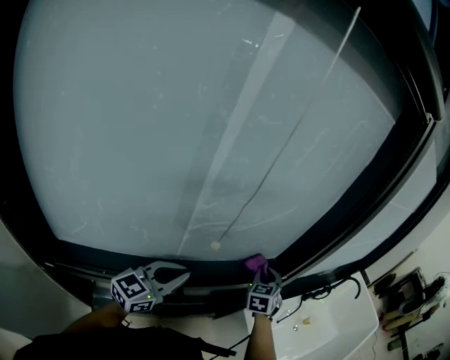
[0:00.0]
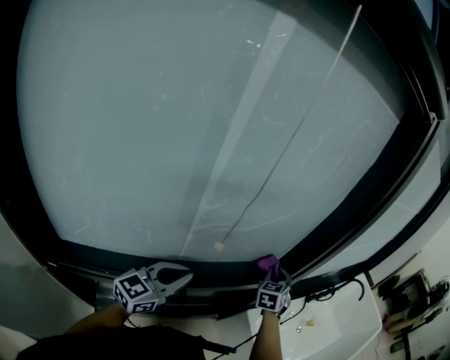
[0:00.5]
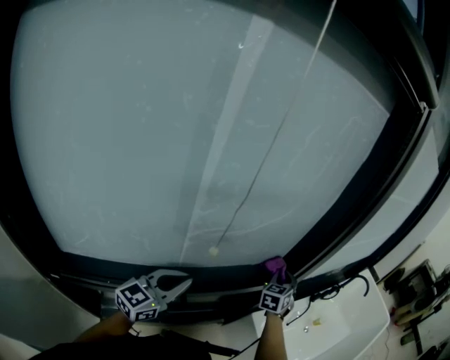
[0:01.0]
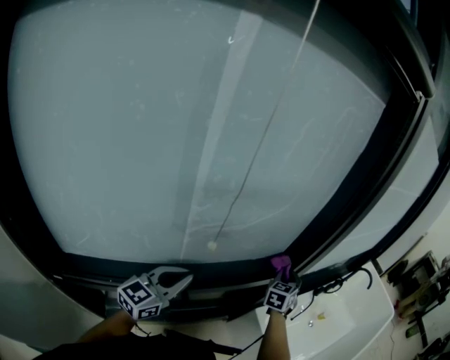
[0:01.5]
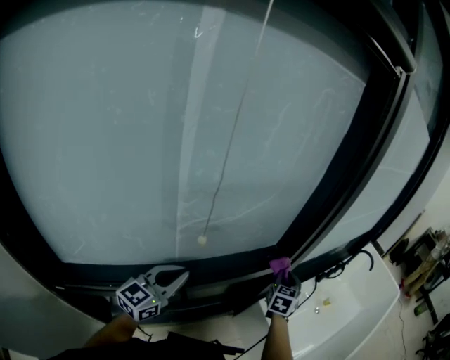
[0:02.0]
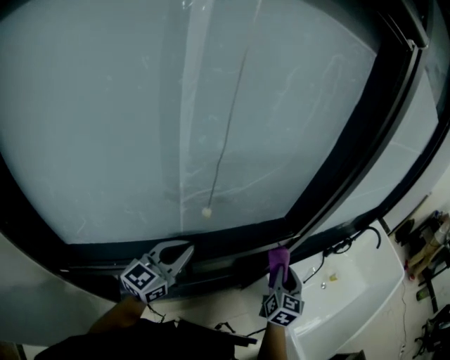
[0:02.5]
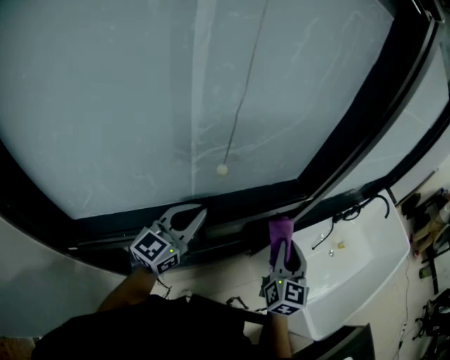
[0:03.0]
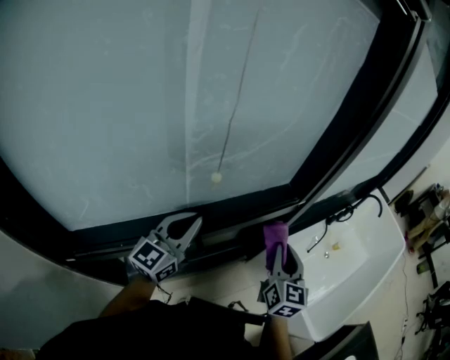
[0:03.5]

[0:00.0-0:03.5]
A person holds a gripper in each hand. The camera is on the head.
0:00.0 to 0:02.0: The right gripper moves to the right, about 10 cm, and changes its angle by some 20 degrees.
0:02.0 to 0:03.5: The right gripper moves backward, some 20 cm, and changes its angle by some 20 degrees.

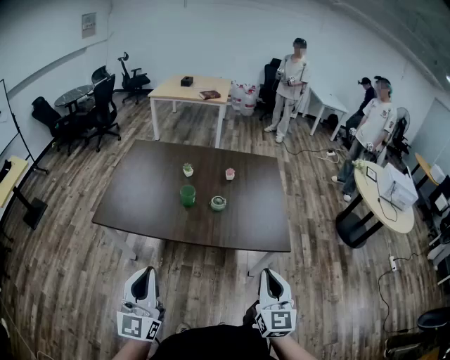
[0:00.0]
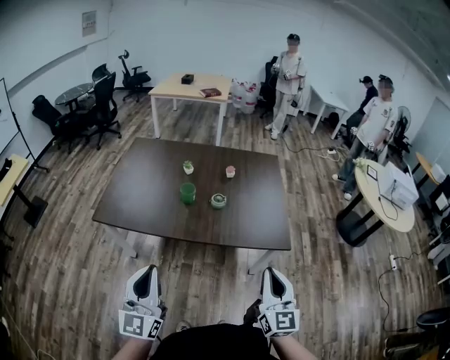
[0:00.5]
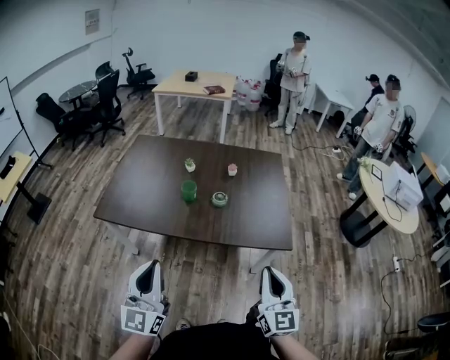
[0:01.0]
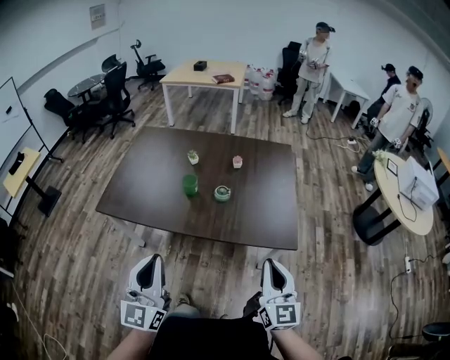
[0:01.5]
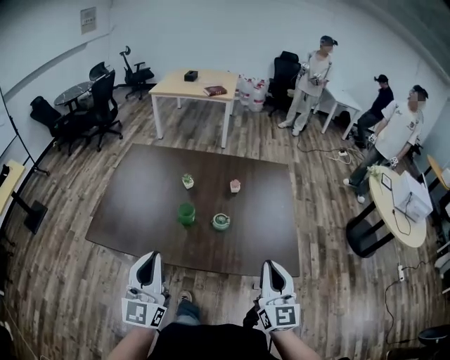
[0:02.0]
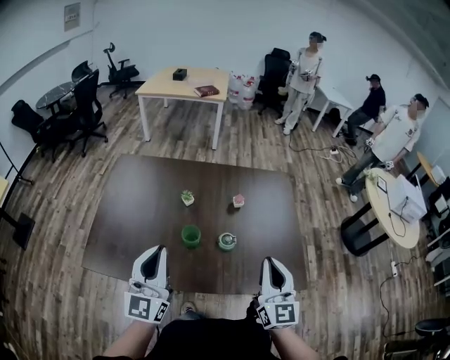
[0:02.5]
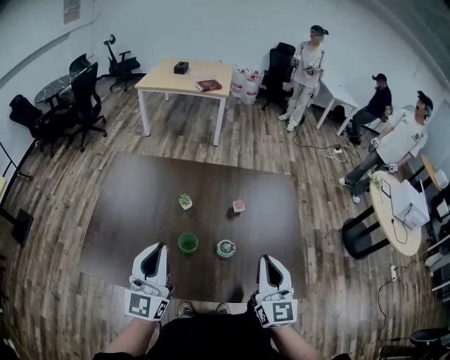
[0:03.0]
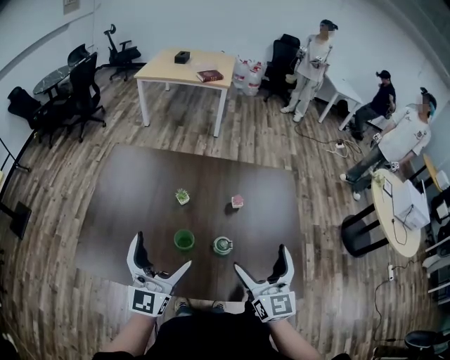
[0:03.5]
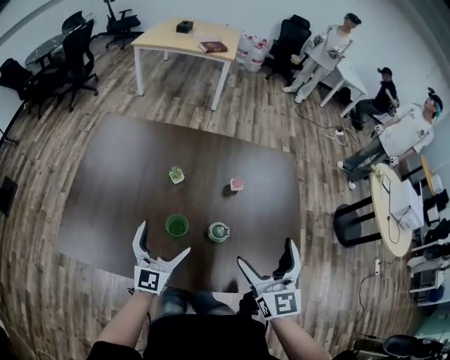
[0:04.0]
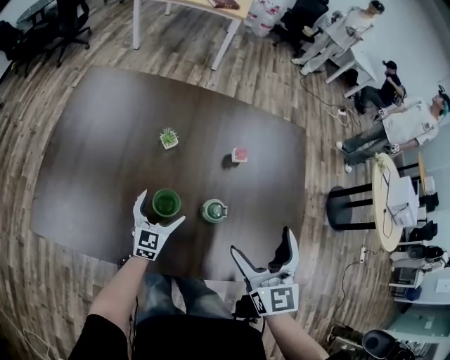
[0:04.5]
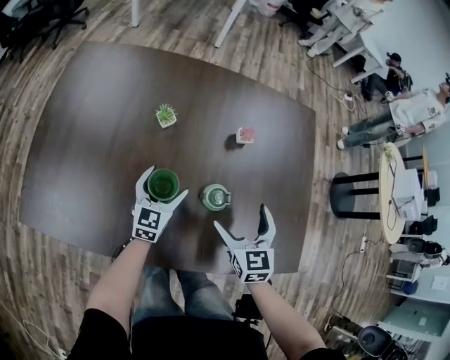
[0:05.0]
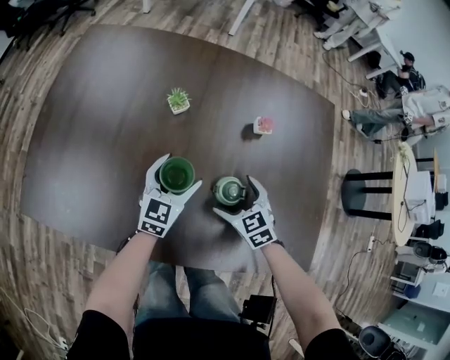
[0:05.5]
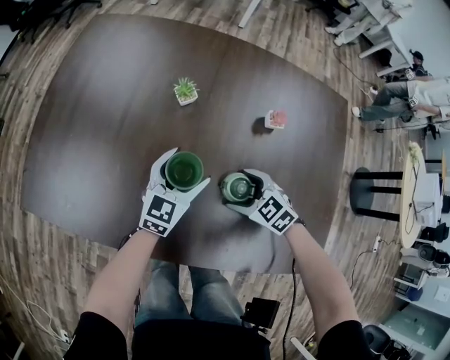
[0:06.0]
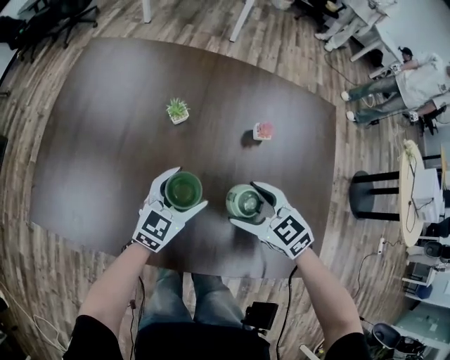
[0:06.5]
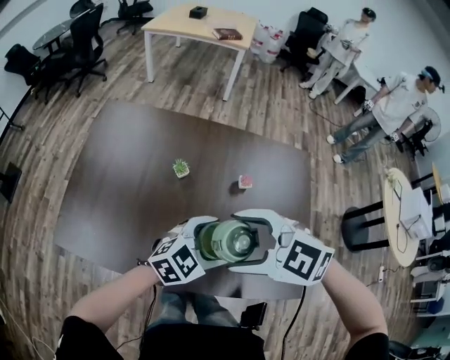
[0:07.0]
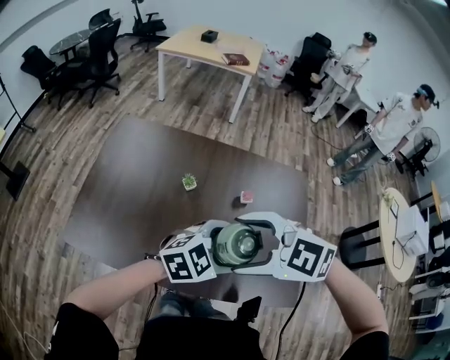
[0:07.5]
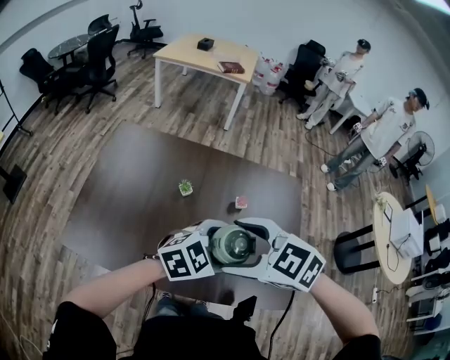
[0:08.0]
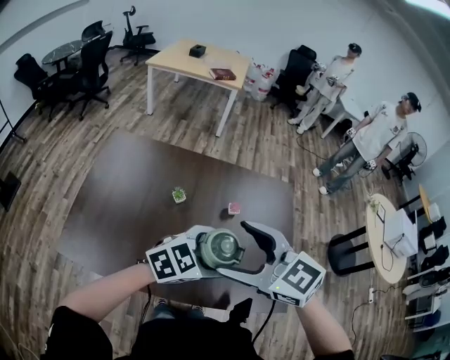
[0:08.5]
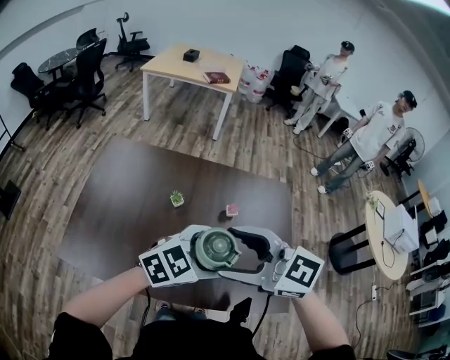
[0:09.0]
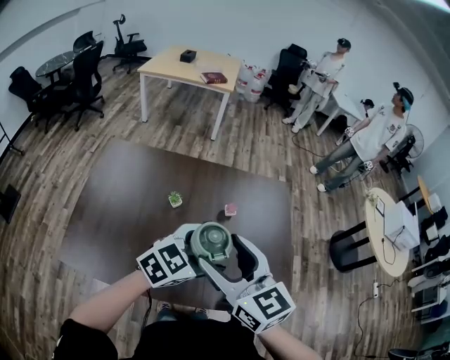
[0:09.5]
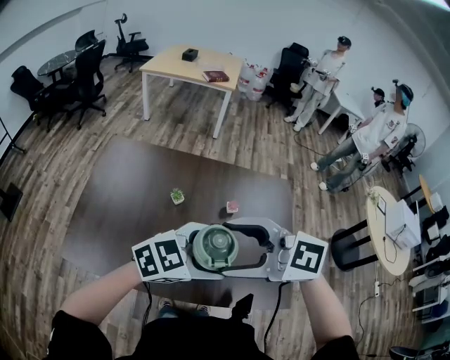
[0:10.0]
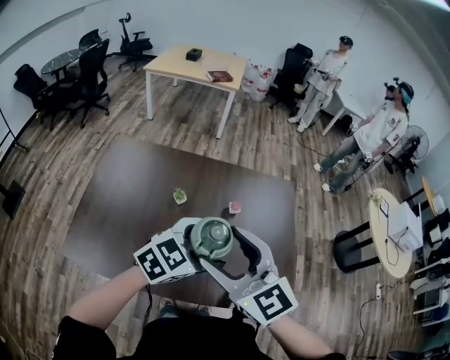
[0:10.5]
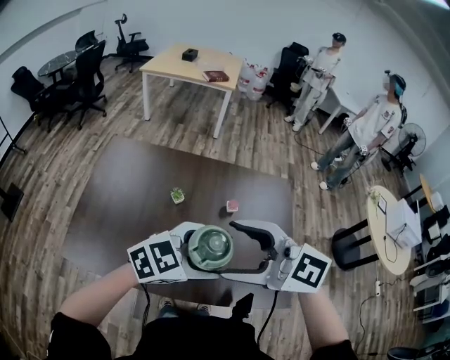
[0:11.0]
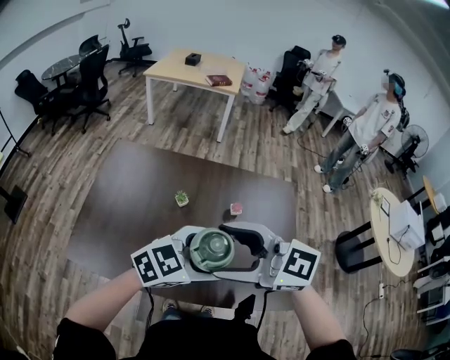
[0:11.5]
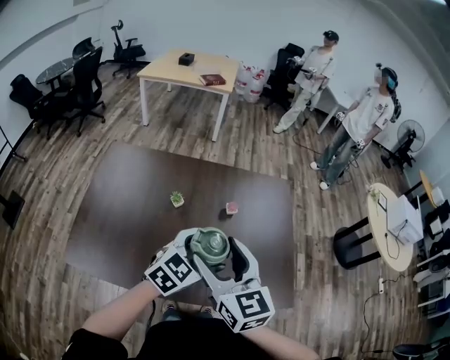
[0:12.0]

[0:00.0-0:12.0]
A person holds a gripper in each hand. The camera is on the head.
0:00.0 to 0:02.0: The two grippers go roughly 20 cm forward.
0:02.0 to 0:04.0: The left gripper goes some 35 cm forward and downward, changes its angle by roughly 20 degrees, and opens up; the right gripper heads forward, covering approximately 25 cm, and opens its fingers.
0:04.0 to 0:06.0: The left gripper is displaced downward by about 20 cm, while the right gripper moves downward, approximately 40 cm, and points its fingers about 50 degrees further downward.
0:06.0 to 0:08.0: The two grippers go approximately 40 cm upward. The left gripper turns by about 40 degrees.
0:08.0 to 0:10.0: Both grippers move upward, some 5 cm. The right gripper turns by approximately 30 degrees.
0:10.0 to 0:12.0: The left gripper moves downward, about 5 cm, and changes its angle by about 20 degrees, while the right gripper changes its angle by about 60 degrees.

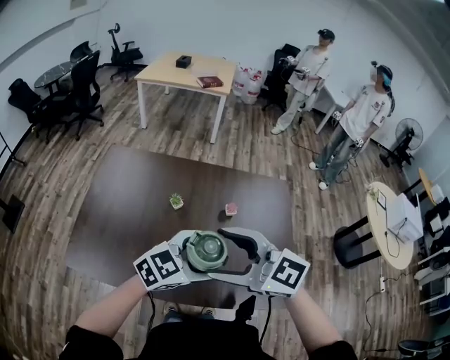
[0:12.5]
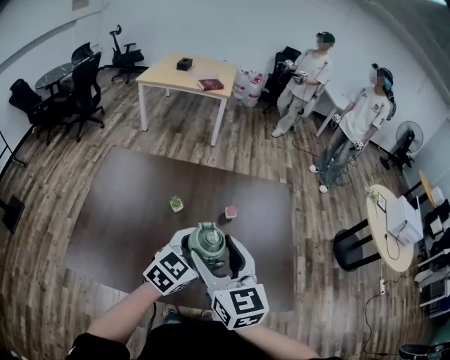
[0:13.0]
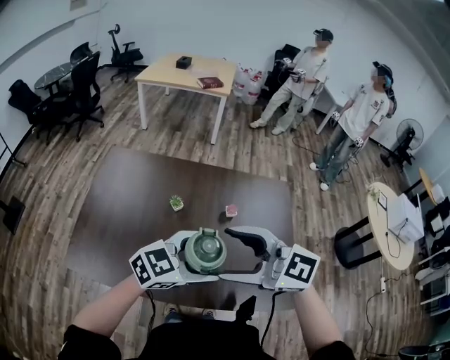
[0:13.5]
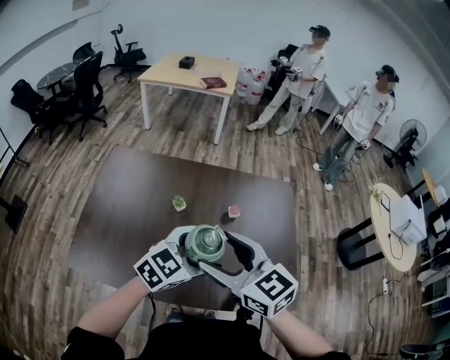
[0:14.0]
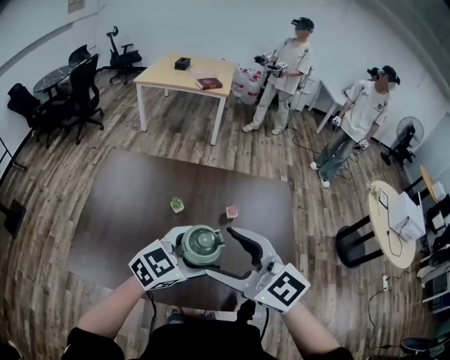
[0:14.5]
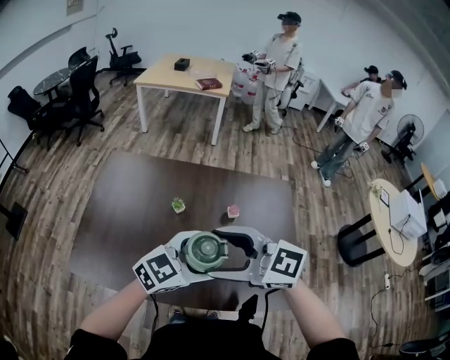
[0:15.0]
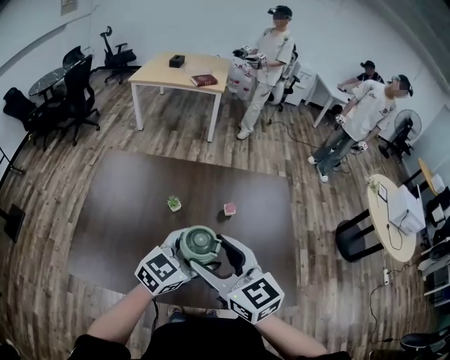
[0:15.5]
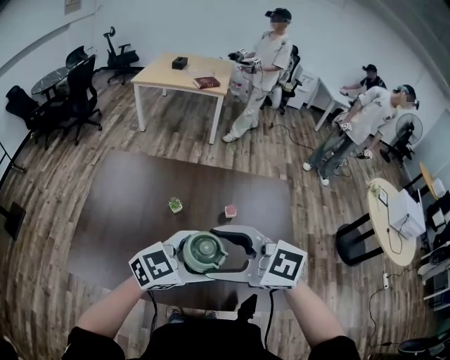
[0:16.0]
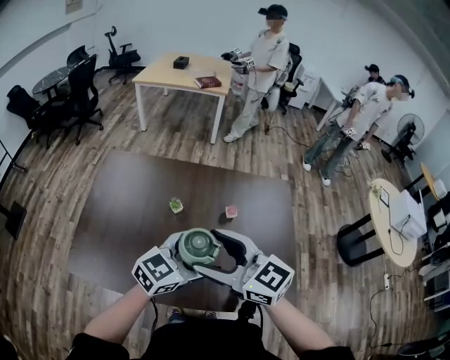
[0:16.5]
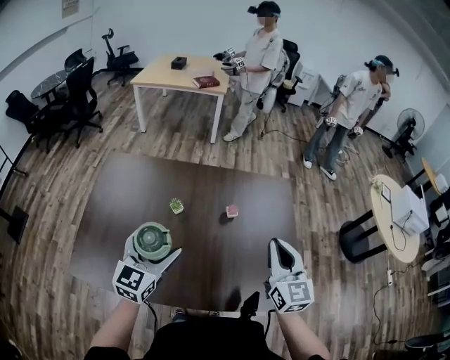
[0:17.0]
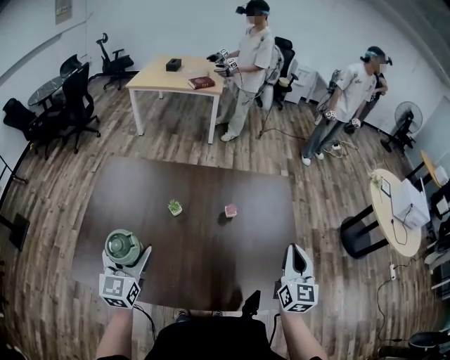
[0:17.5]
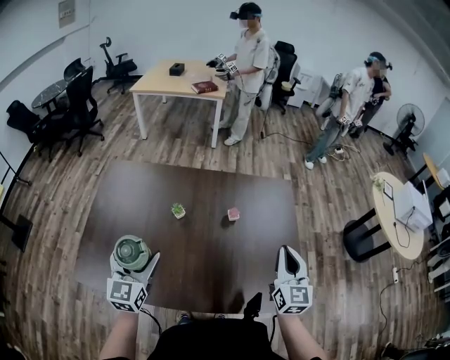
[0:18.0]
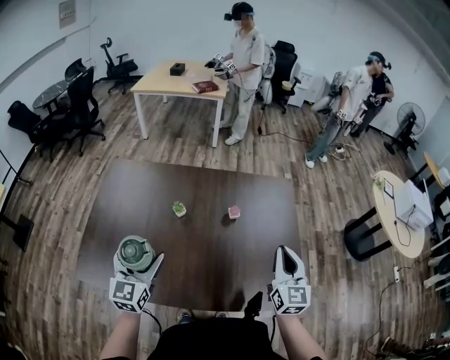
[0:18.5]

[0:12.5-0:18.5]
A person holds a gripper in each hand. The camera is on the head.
0:16.5 to 0:18.5: The right gripper goes approximately 25 cm to the right, changes its angle by approximately 60 degrees, and closes. The left gripper travels to the left by roughly 20 cm, and turns by about 50 degrees.

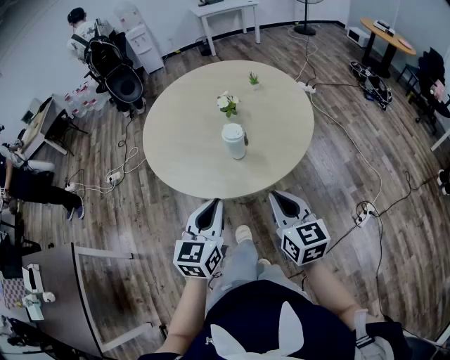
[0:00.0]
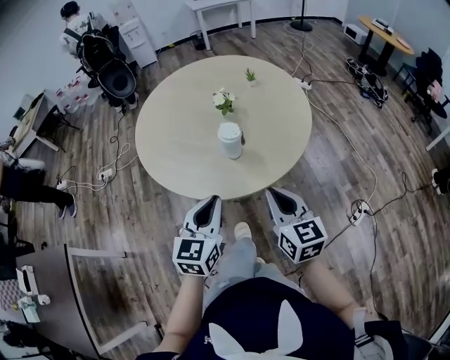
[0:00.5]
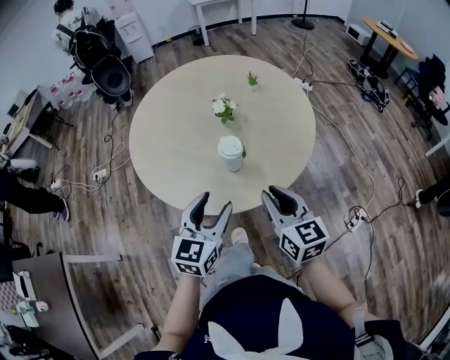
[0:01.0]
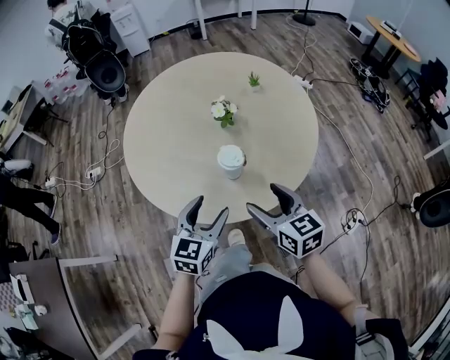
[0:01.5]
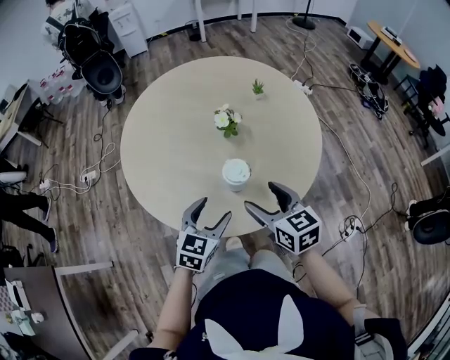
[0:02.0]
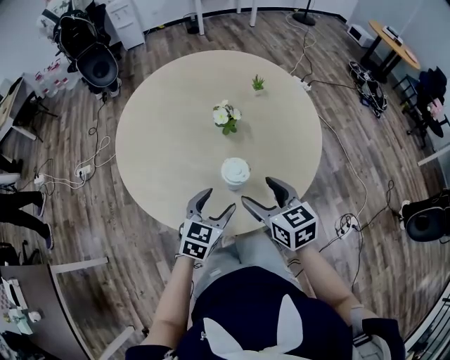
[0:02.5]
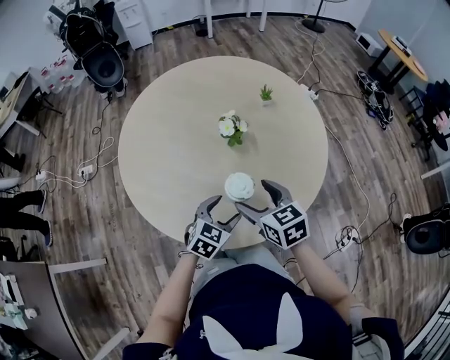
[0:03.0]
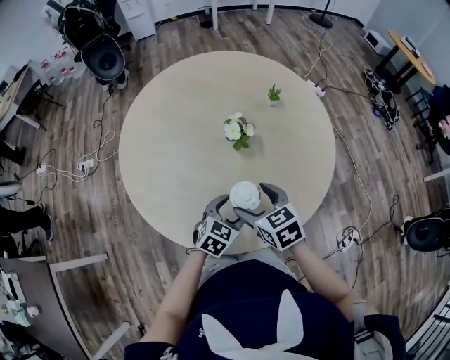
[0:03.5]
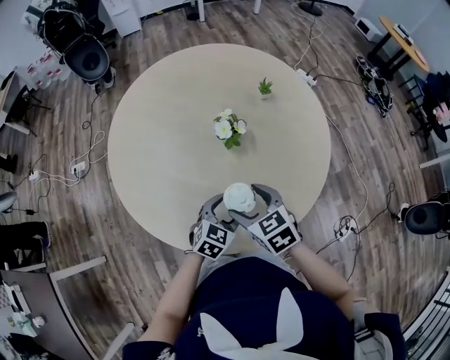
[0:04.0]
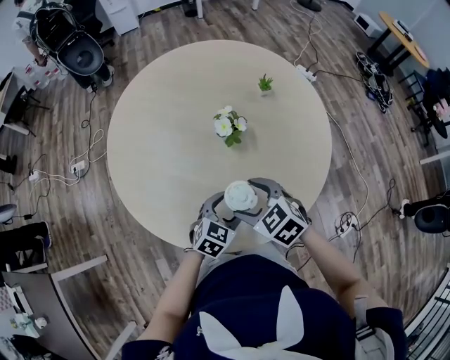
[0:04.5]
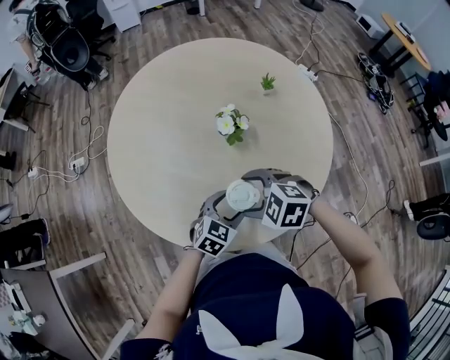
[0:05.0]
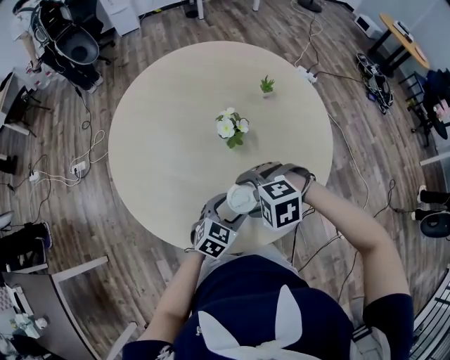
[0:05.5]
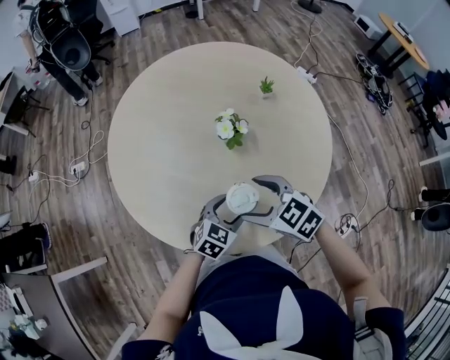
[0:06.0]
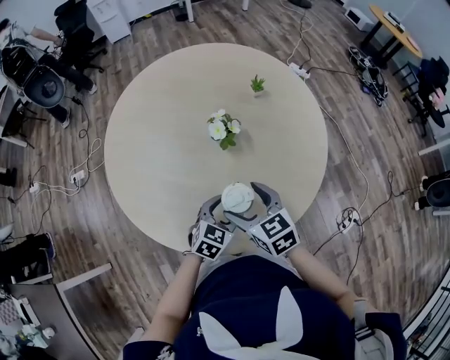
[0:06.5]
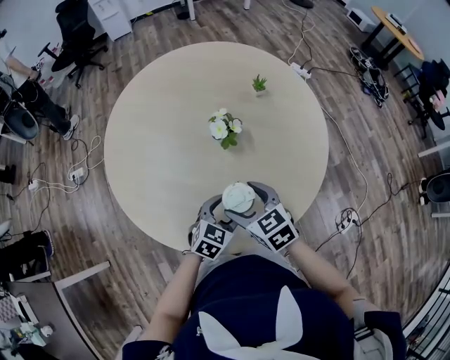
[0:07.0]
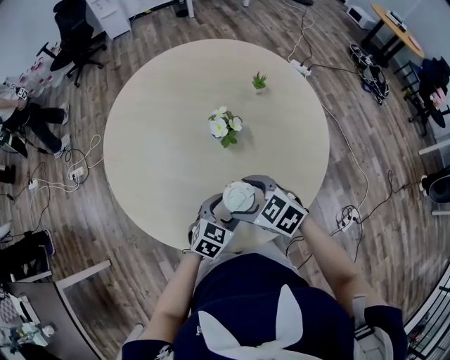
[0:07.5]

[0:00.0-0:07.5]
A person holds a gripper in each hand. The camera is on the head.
0:00.0 to 0:02.0: The left gripper moves forward and downward, some 20 cm, changes its angle by roughly 20 degrees, and opens, while the right gripper is displaced forward by roughly 20 cm, and opens.
0:02.0 to 0:04.0: The left gripper travels downward, forward and to the right by roughly 15 cm; the right gripper moves forward and downward, approximately 10 cm, and changes its angle by roughly 20 degrees.
0:04.0 to 0:05.5: The right gripper twists some 60 degrees counterclockwise, seen from behind.
0:05.5 to 0:07.5: The right gripper rolls clockwise, seen from behind, by roughly 40 degrees.
